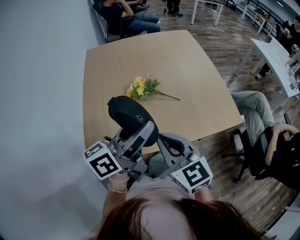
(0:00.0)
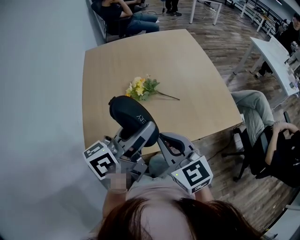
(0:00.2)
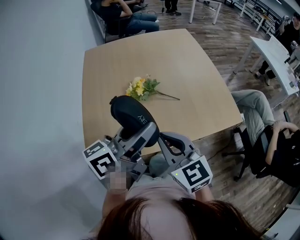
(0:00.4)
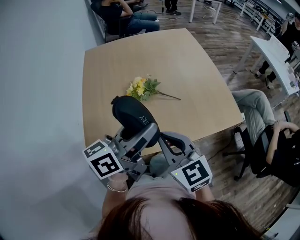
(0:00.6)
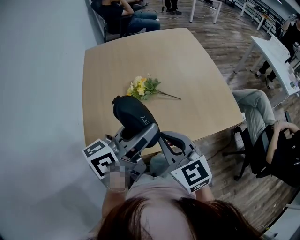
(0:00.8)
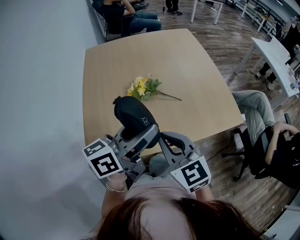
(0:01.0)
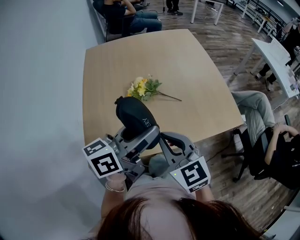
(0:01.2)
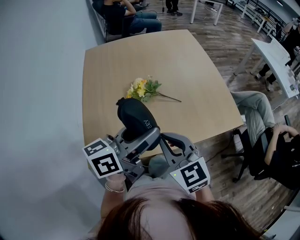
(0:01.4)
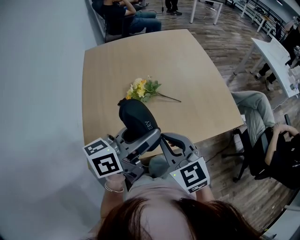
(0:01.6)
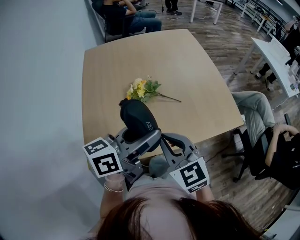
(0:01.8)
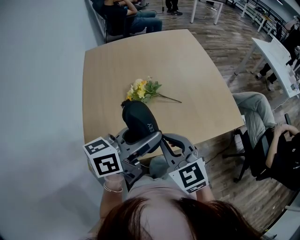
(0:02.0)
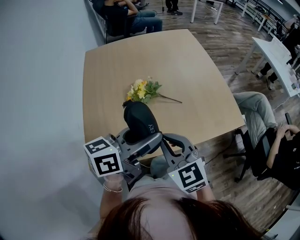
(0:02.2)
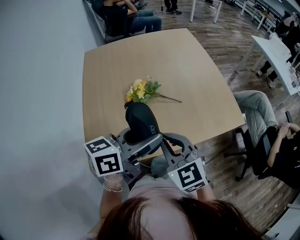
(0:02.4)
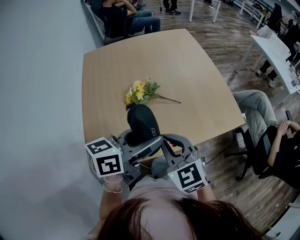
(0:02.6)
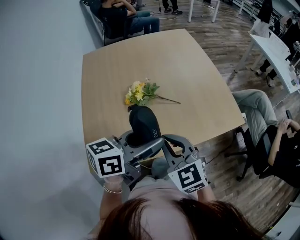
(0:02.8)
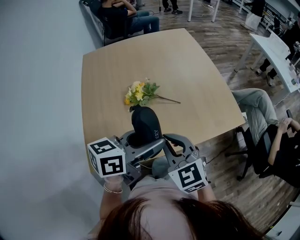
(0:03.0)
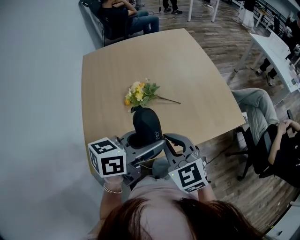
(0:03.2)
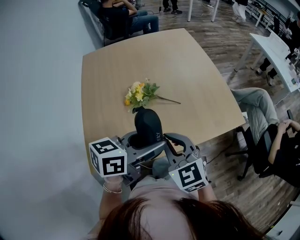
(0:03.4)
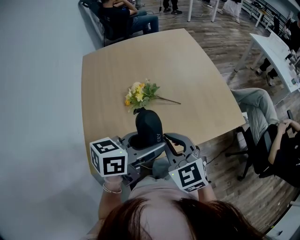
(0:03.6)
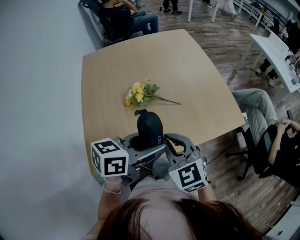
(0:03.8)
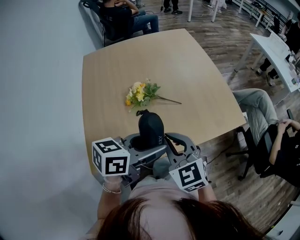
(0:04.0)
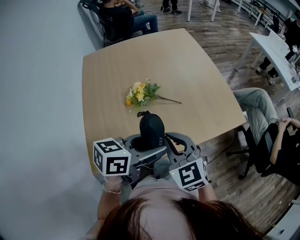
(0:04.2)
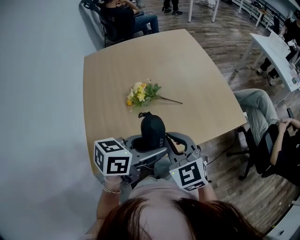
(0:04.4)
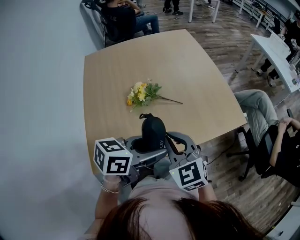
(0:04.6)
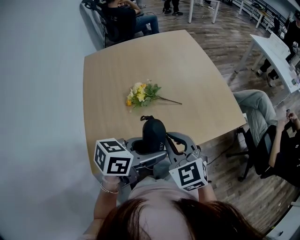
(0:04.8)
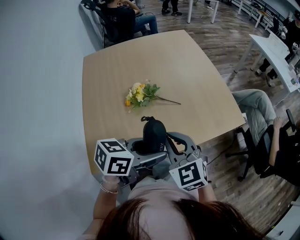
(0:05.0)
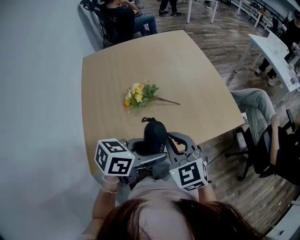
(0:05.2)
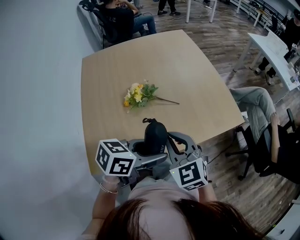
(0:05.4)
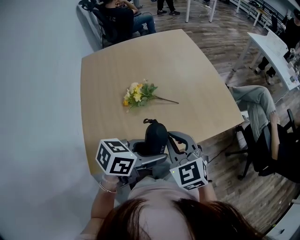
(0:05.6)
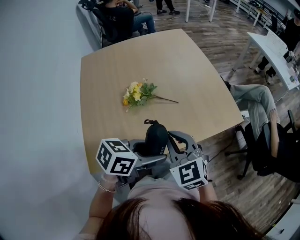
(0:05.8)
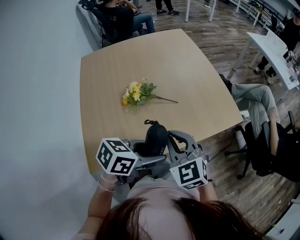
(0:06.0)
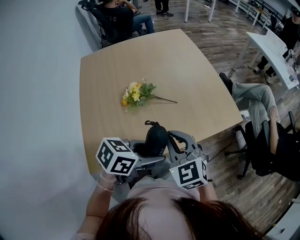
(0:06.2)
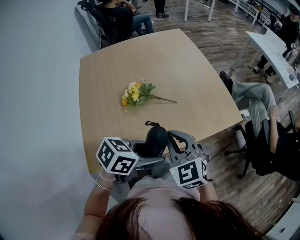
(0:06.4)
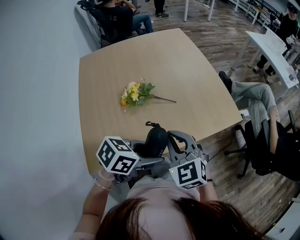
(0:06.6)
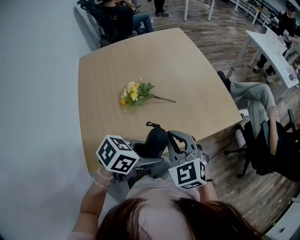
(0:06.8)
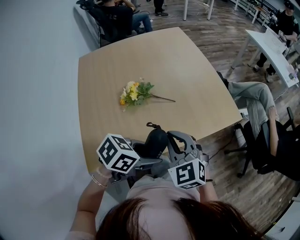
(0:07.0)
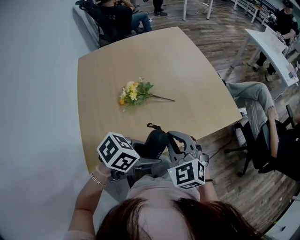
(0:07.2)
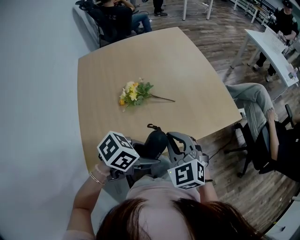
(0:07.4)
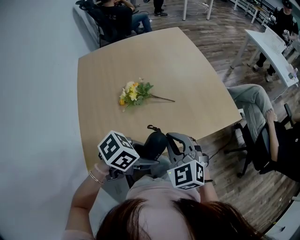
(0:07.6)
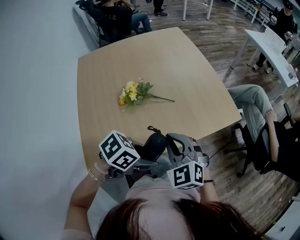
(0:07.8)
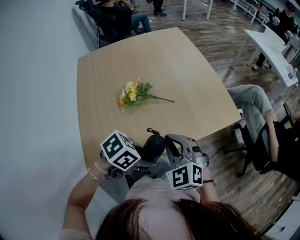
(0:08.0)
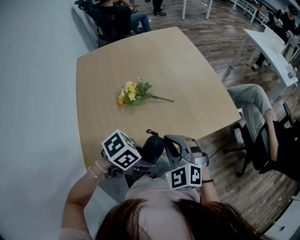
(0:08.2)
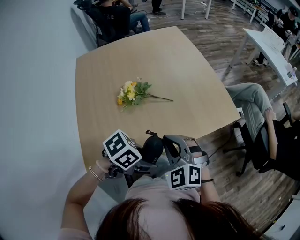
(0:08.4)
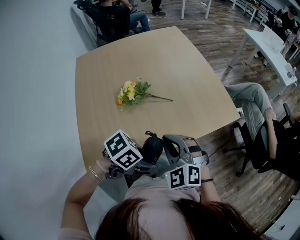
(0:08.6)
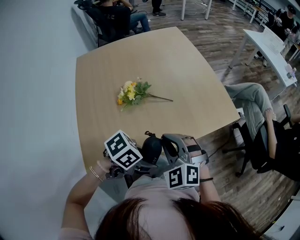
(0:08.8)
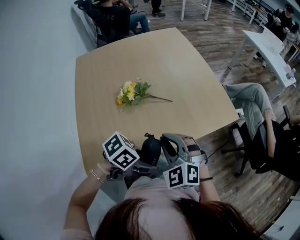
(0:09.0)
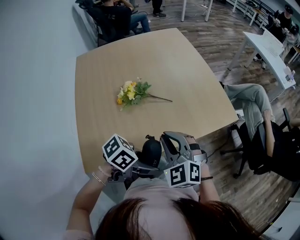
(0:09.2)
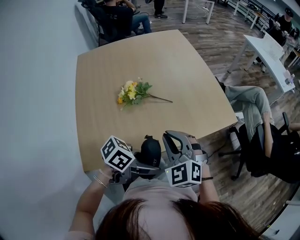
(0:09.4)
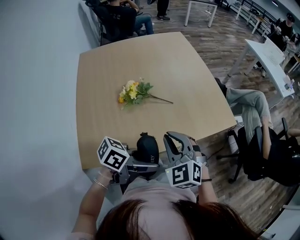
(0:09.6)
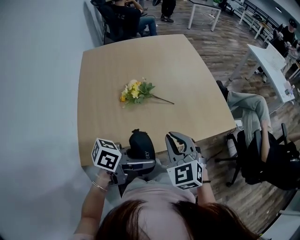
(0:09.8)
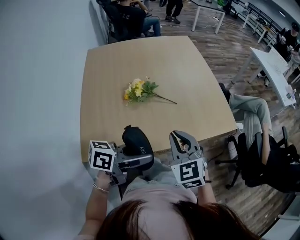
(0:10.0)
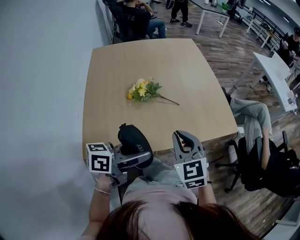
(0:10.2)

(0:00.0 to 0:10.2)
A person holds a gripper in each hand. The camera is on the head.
0:00.0 - 0:01.4: The grippers stay close to where they were, moving slightly.
0:01.4 - 0:03.0: The left gripper ends up roughly 5 cm from where it was.
0:03.0 - 0:04.4: The grippers make only small movements.
0:04.4 - 0:05.8: There are only small adjustments of the grippers.
0:05.8 - 0:07.2: There are only small adjustments of the grippers.
0:07.2 - 0:08.8: The grippers move only a little.
0:08.8 - 0:10.2: The right gripper rotates about 30 degrees. The left gripper shifts some 10 cm upward, and tilts its fingers approximately 40 degrees upward.

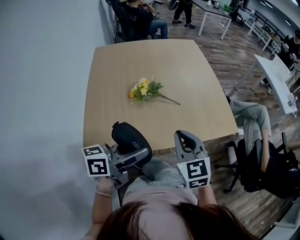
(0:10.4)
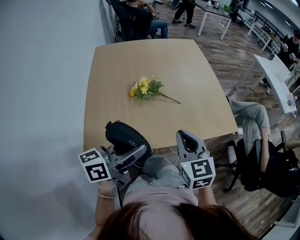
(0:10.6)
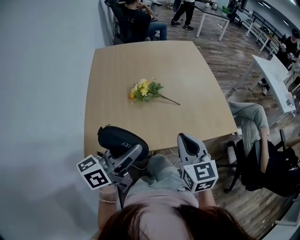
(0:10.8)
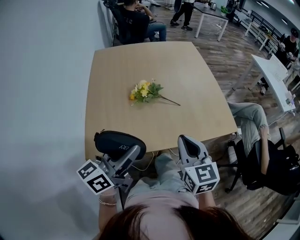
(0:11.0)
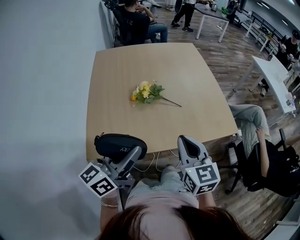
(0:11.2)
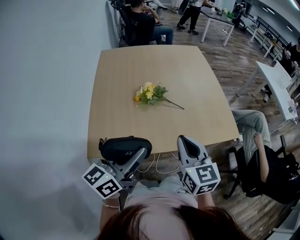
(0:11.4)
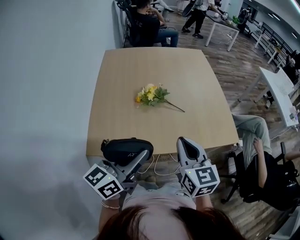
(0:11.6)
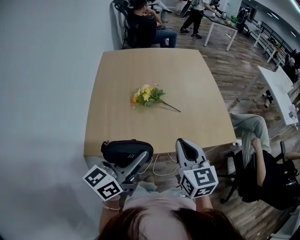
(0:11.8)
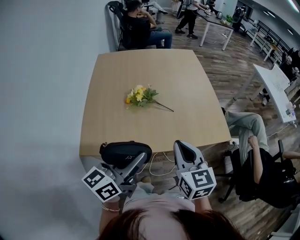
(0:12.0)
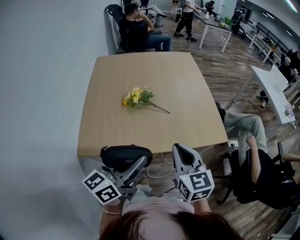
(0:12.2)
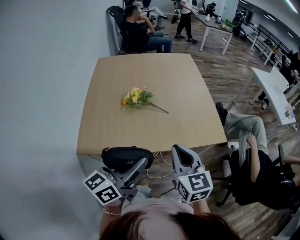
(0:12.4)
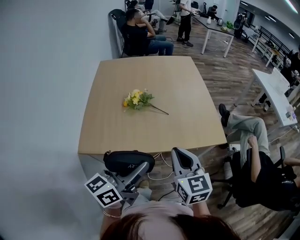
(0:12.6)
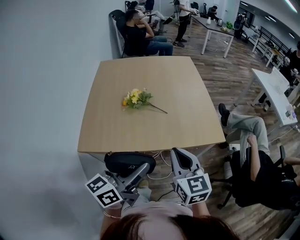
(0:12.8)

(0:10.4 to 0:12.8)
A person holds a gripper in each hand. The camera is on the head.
0:10.4 - 0:11.6: The left gripper changes place by about 5 cm, and swivels approximately 30 degrees.
0:11.6 - 0:12.8: Both grippers travel together to the right and backward, about 15 cm.

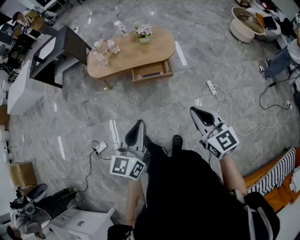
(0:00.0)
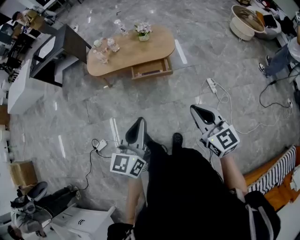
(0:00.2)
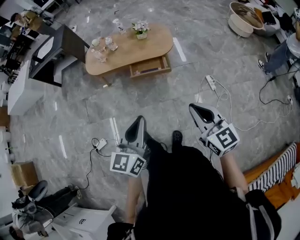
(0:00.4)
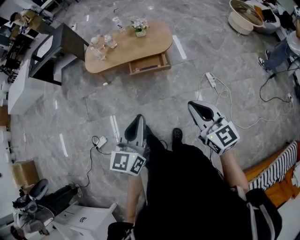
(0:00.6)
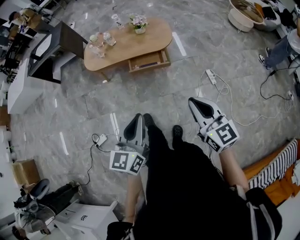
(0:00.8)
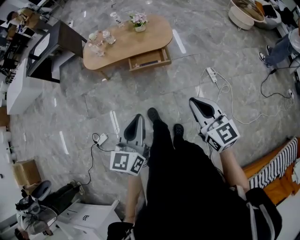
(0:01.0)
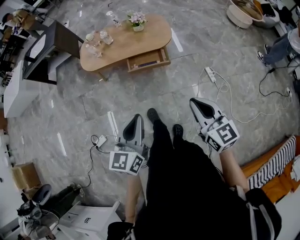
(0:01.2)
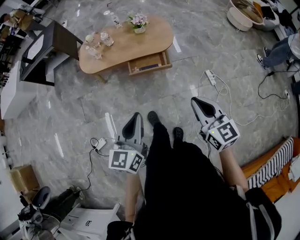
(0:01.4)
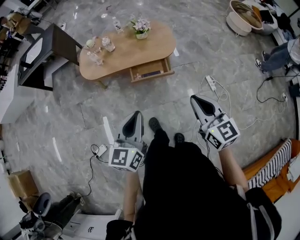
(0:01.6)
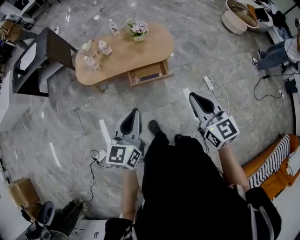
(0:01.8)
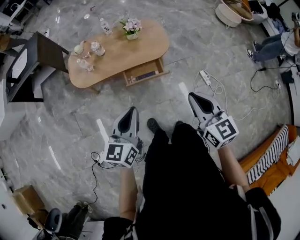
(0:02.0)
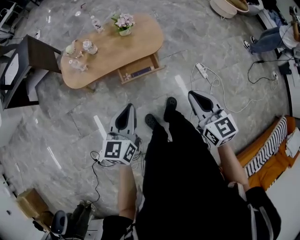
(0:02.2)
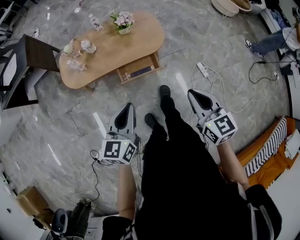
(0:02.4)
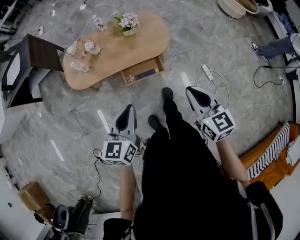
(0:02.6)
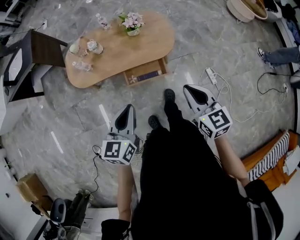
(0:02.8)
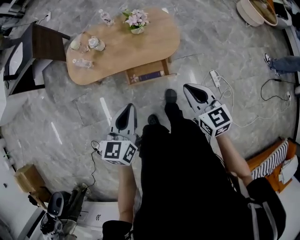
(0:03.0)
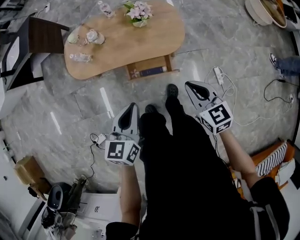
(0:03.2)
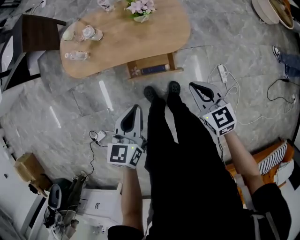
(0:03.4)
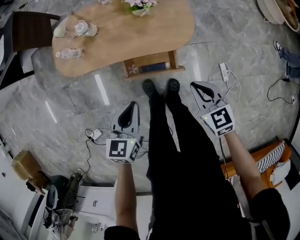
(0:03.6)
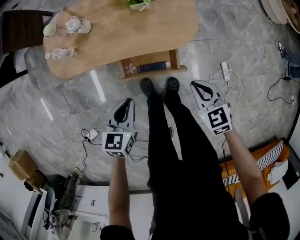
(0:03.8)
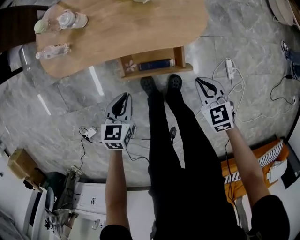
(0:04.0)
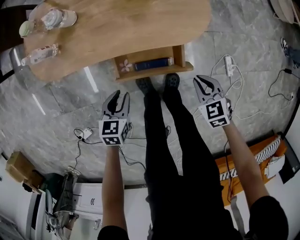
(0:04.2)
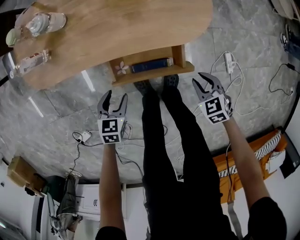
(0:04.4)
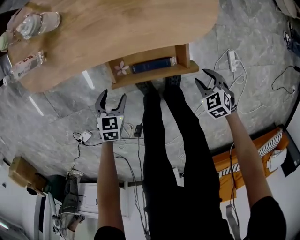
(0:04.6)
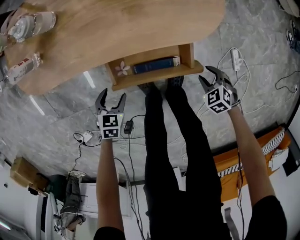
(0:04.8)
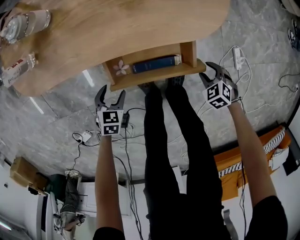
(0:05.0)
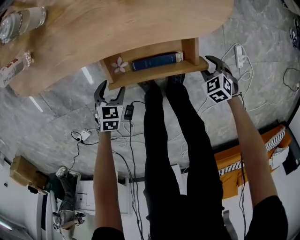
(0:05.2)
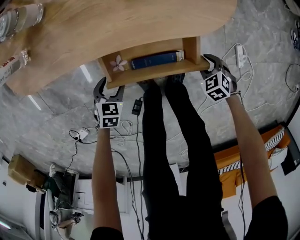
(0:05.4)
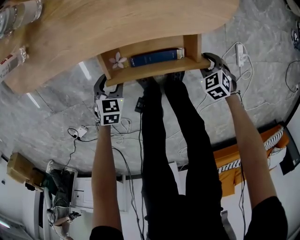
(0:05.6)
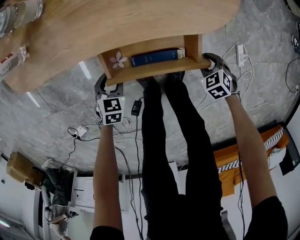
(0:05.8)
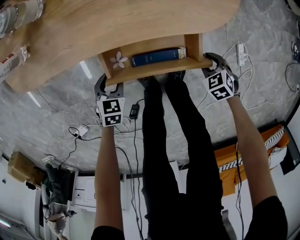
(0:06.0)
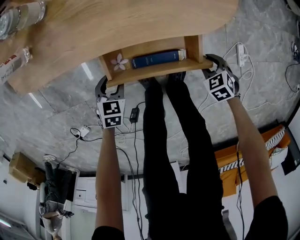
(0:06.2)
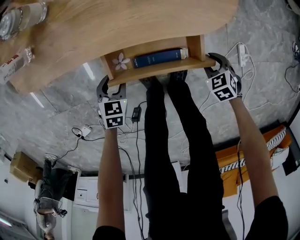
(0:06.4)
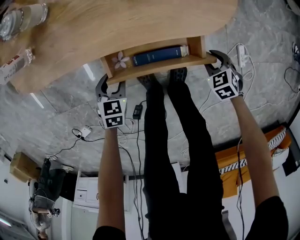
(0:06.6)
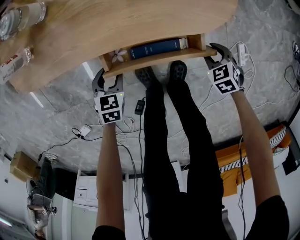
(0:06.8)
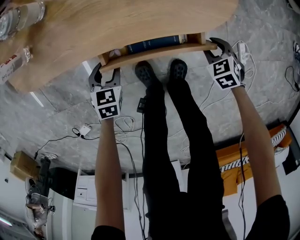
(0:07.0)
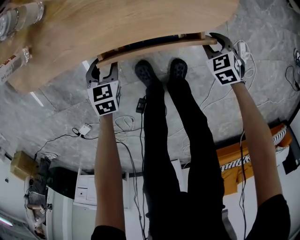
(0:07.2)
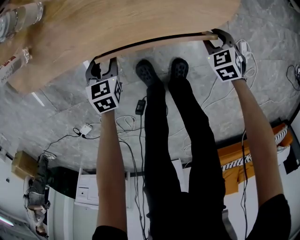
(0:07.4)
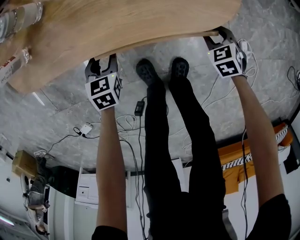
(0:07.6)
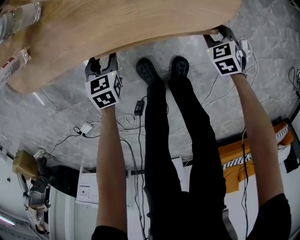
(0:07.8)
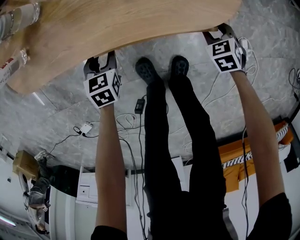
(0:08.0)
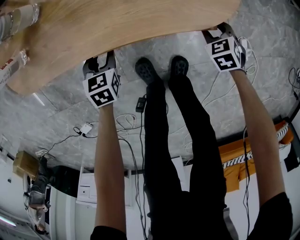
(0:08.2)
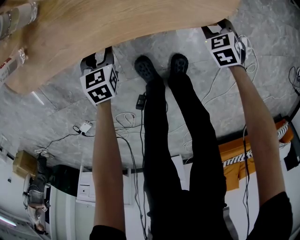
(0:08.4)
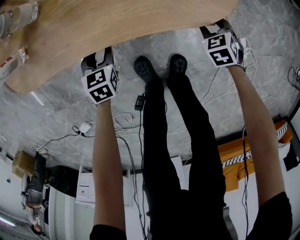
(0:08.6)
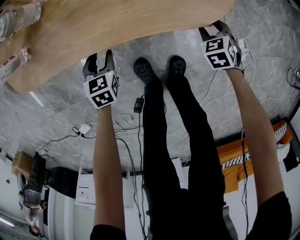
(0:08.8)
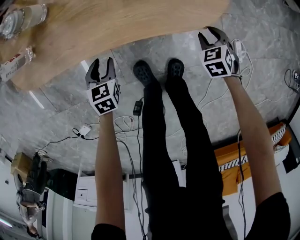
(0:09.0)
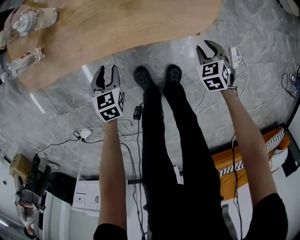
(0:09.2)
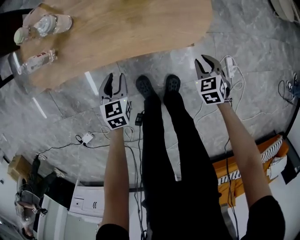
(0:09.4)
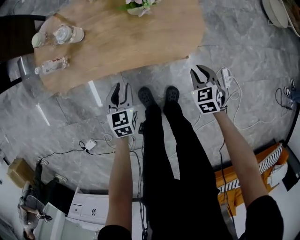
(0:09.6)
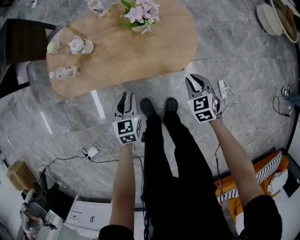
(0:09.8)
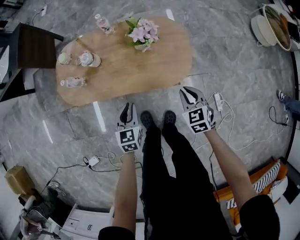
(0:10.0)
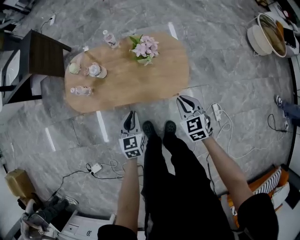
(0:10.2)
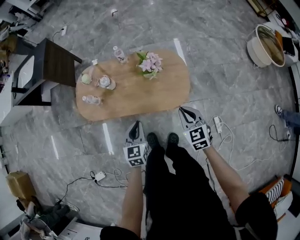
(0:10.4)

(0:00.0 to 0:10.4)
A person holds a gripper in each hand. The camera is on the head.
0:00.0 - 0:01.4: Both grippers move forward, some 5 cm.
0:01.4 - 0:03.0: Both grippers move forward, some 30 cm.
0:03.0 - 0:04.4: The two grippers go roughly 50 cm downward. The right gripper angles its fingers downward, by approximately 40 degrees. Meanwhile the left gripper tilts its fingers about 30 degrees downward, and opens up.
0:04.4 - 0:06.0: Both grippers move downward, some 15 cm.
0:06.0 - 0:07.4: The right gripper changes place by some 10 cm. Meanwhile the left gripper ends up roughly 10 cm from where it was.
0:07.4 - 0:09.0: There are only small adjustments of the grippers.
0:09.0 - 0:10.4: The two grippers go about 50 cm upward. The left gripper rotates roughly 30 degrees, and closes its fingers. The right gripper points its fingers roughly 30 degrees further upward, and closes up.

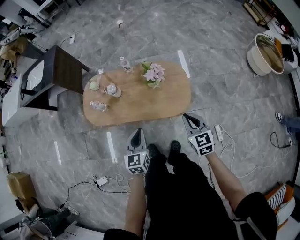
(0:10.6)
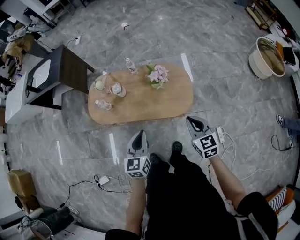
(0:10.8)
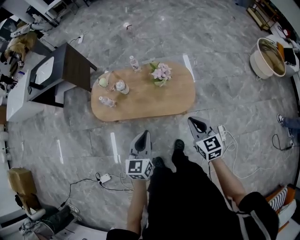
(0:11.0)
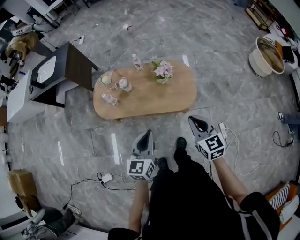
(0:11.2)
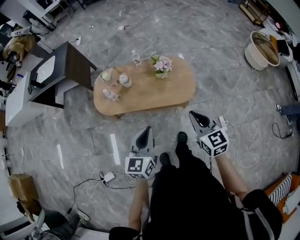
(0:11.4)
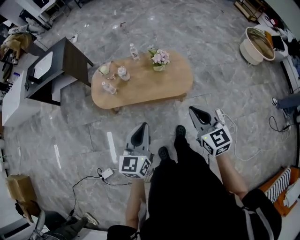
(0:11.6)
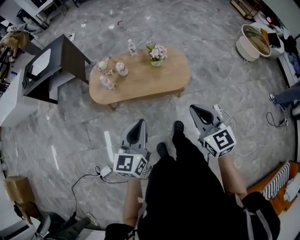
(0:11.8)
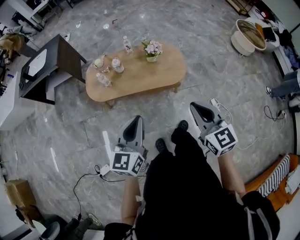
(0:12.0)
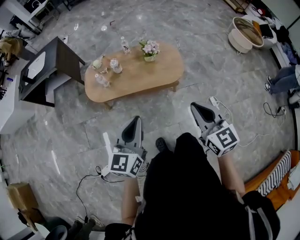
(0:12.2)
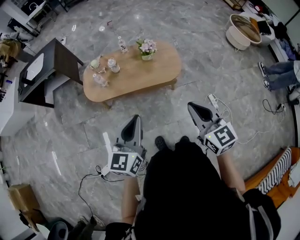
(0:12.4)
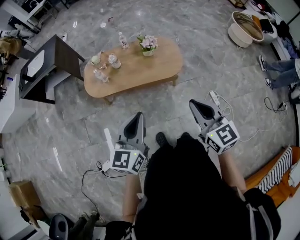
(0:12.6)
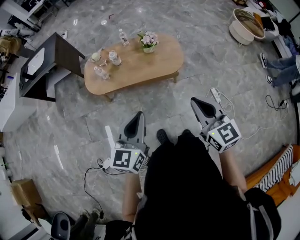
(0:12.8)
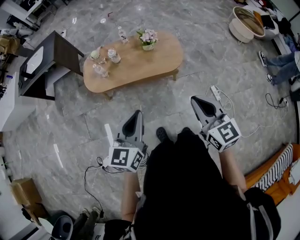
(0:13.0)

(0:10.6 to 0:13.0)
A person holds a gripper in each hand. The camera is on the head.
0:10.6 - 0:11.8: Both grippers move backward, upward and to the left, roughly 30 cm. The left gripper rotates some 20 degrees.
0:11.8 - 0:13.0: Both grippers move backward, some 10 cm.
